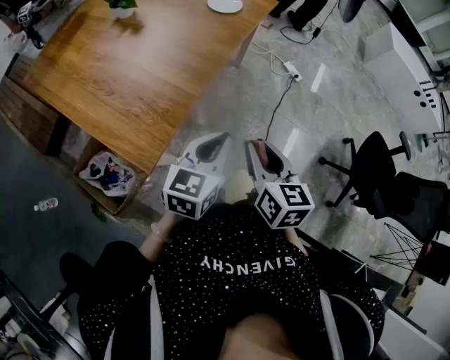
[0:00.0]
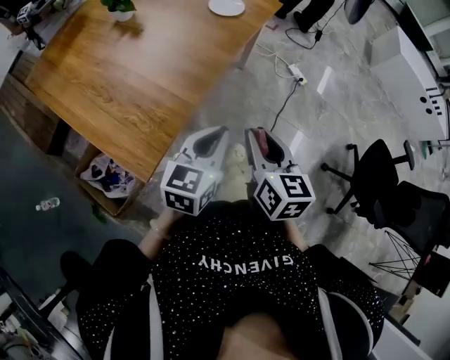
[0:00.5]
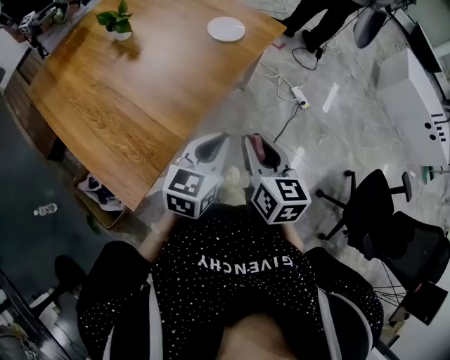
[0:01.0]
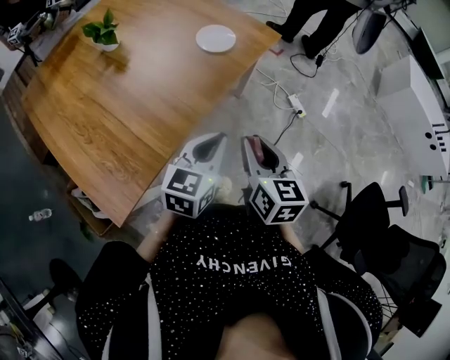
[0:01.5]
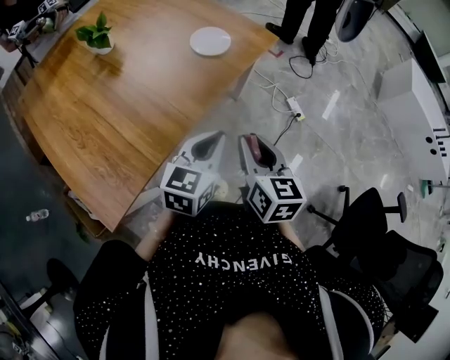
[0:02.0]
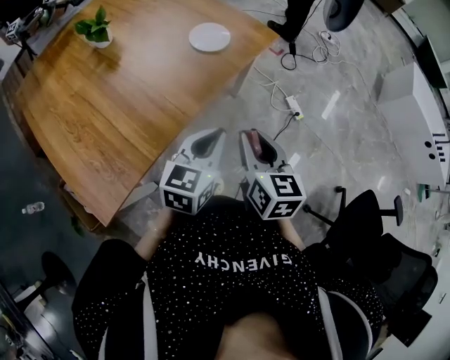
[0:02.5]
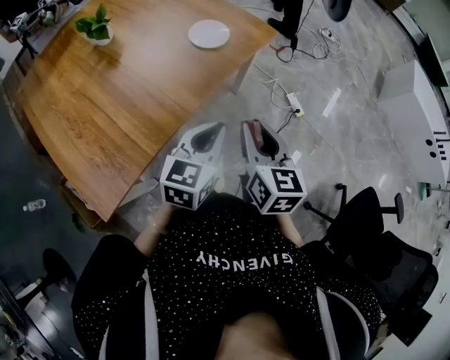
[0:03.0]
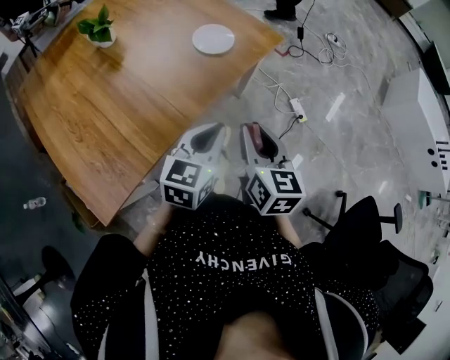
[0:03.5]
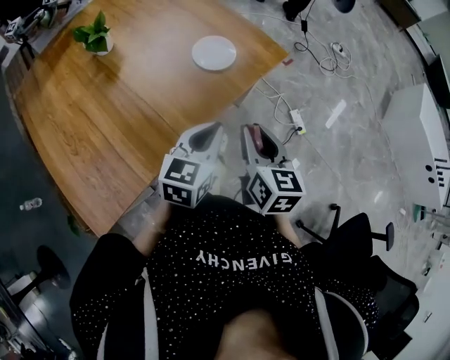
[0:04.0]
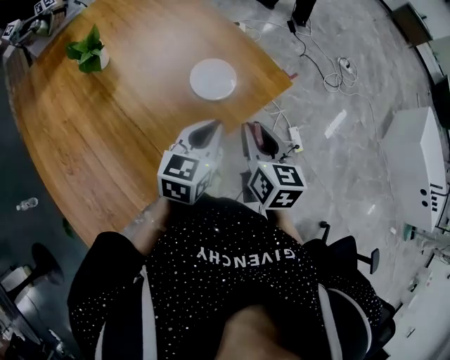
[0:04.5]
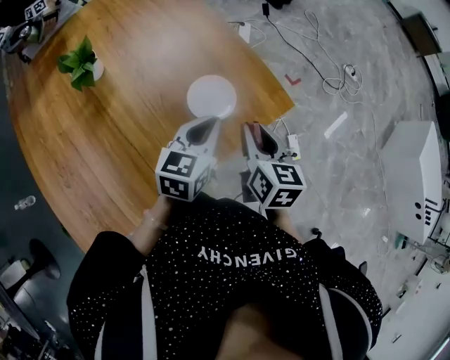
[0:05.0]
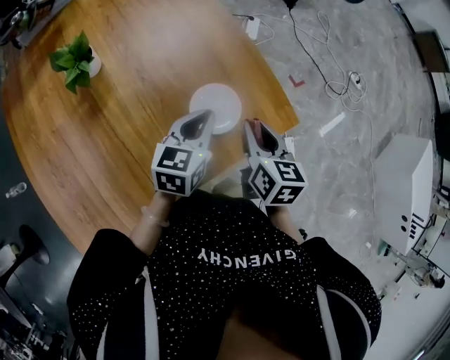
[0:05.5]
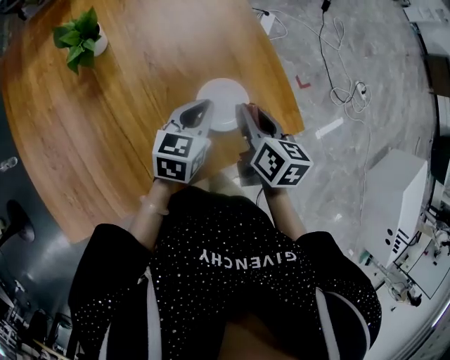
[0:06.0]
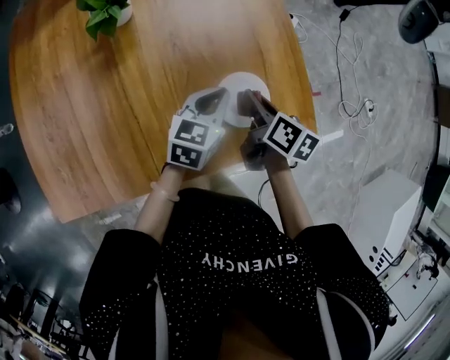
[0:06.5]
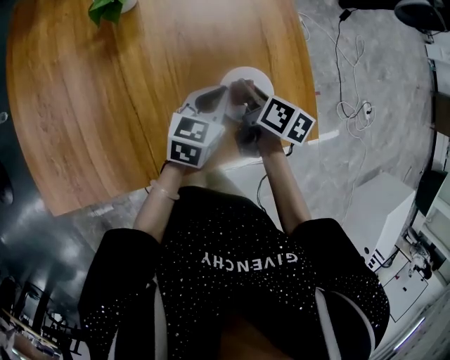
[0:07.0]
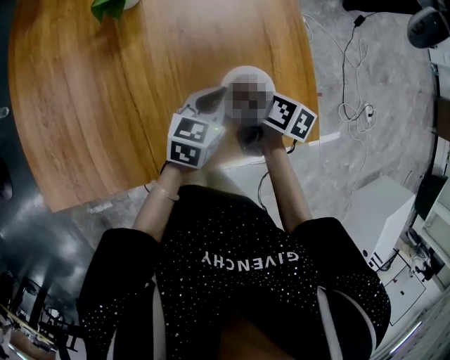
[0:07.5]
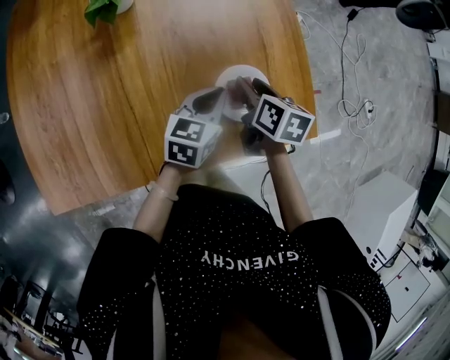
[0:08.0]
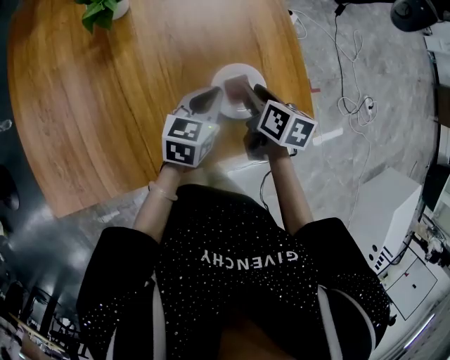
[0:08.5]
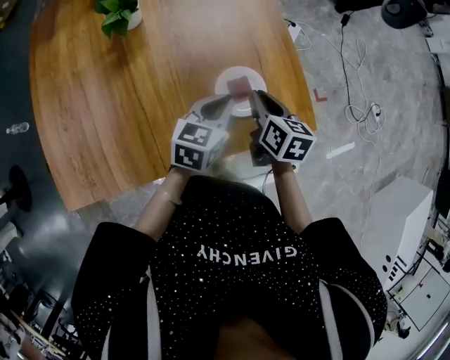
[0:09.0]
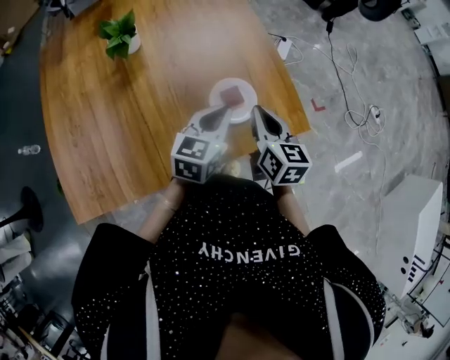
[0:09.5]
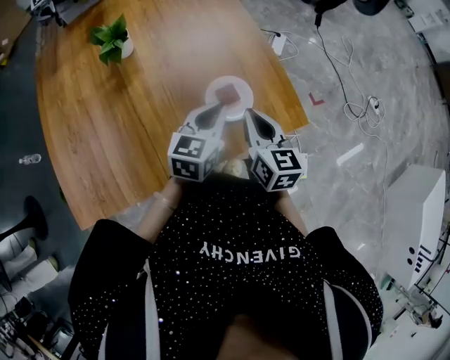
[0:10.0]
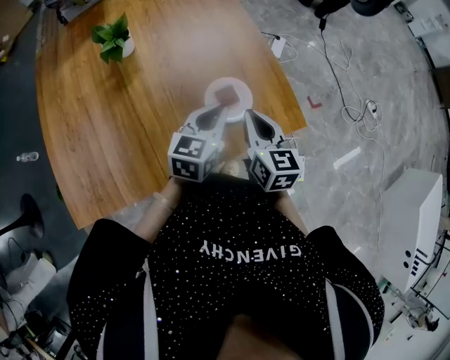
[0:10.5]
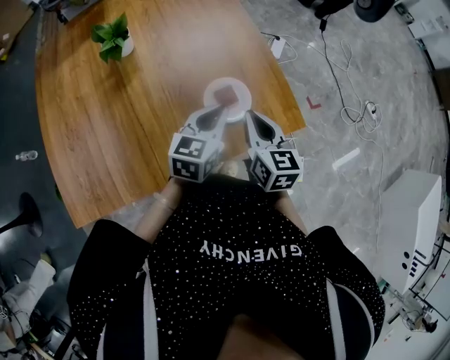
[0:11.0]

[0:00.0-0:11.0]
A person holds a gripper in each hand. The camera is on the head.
0:00.0 to 0:02.0: Both grippers move forward, roughly 30 cm.
0:02.0 to 0:03.5: The grippers move only a little.
0:03.5 to 0:05.5: Both grippers move forward, some 35 cm. The left gripper changes its angle by approximately 20 degrees.
0:05.5 to 0:07.5: The right gripper shifts some 15 cm downward, to the left and forward, and swivels approximately 30 degrees. Meanwhile the left gripper travels downward by approximately 10 cm.
0:07.5 to 0:09.0: The left gripper goes roughly 5 cm upward; the right gripper shifts some 10 cm upward and to the right, and rotates roughly 20 degrees.
0:09.0 to 0:11.0: The left gripper ends up approximately 5 cm from where it was, while the right gripper travels backward and upward by about 10 cm.

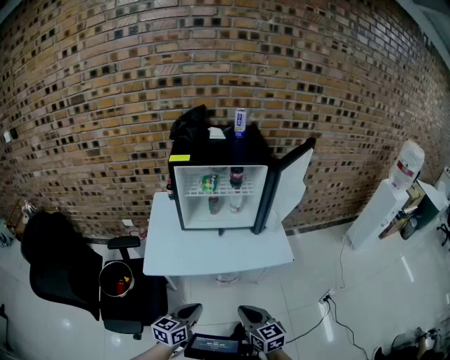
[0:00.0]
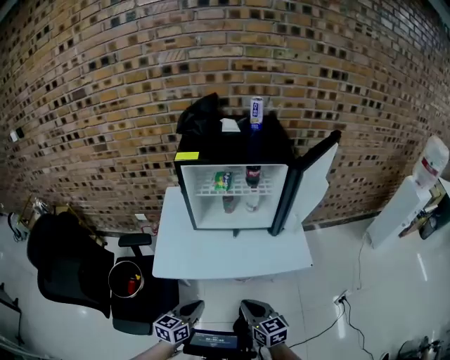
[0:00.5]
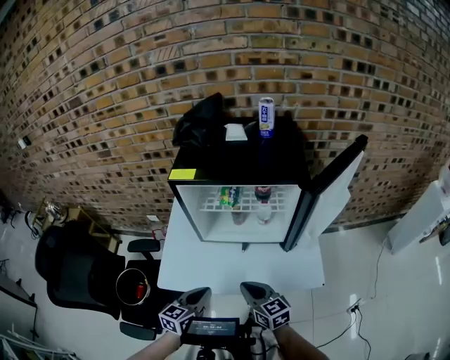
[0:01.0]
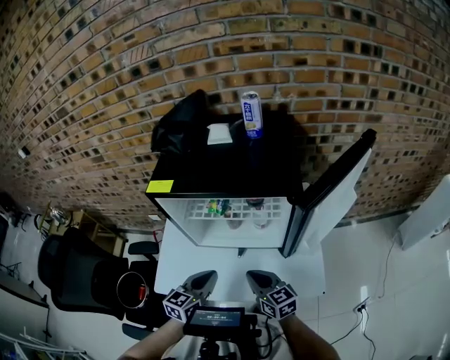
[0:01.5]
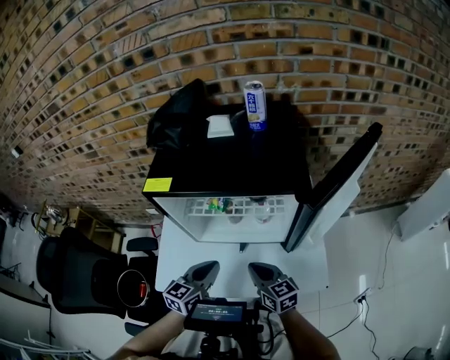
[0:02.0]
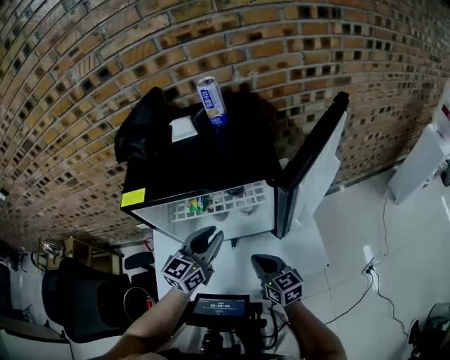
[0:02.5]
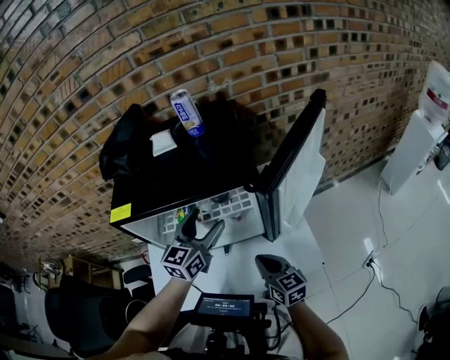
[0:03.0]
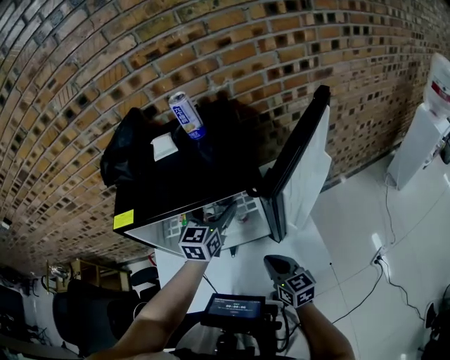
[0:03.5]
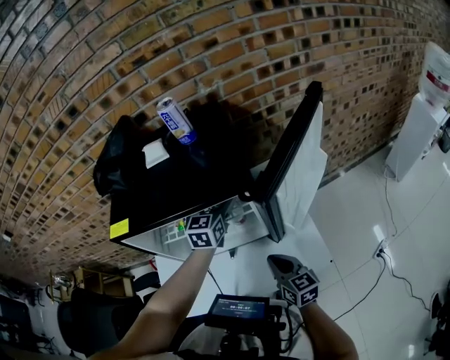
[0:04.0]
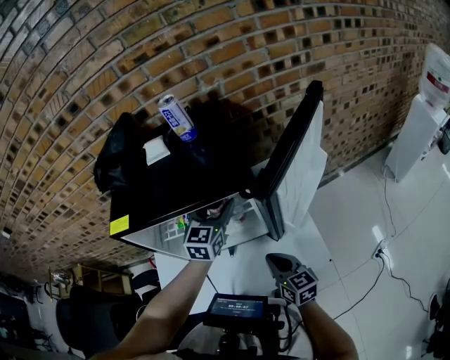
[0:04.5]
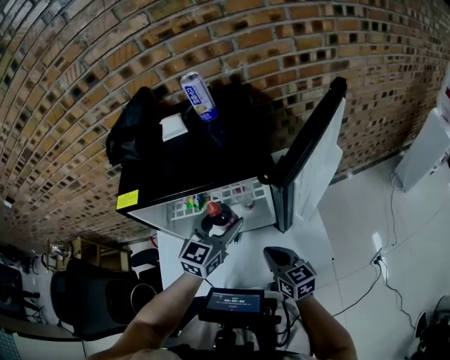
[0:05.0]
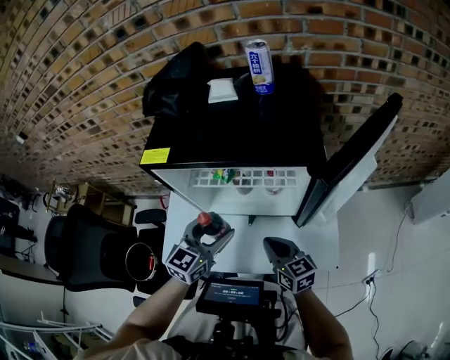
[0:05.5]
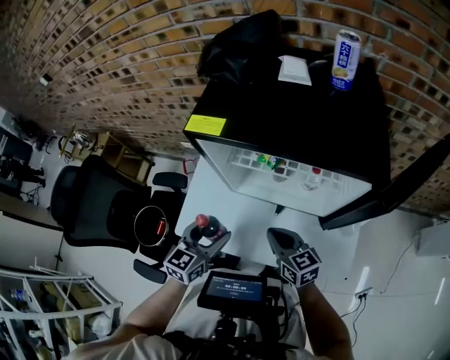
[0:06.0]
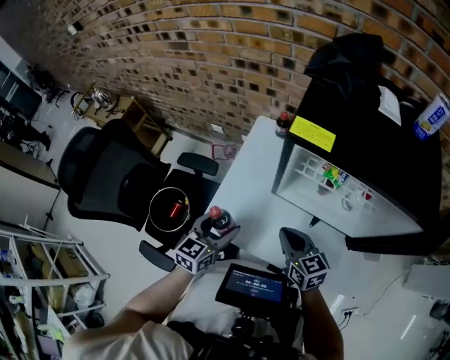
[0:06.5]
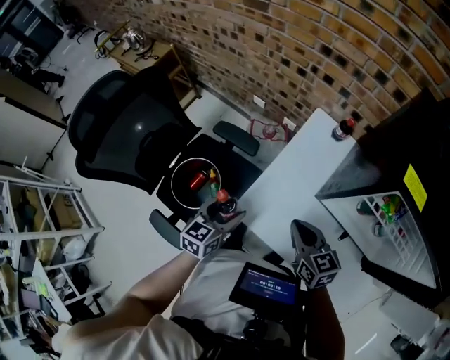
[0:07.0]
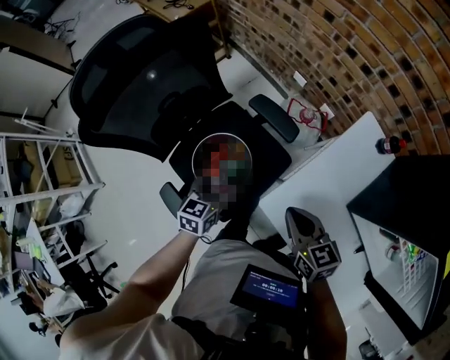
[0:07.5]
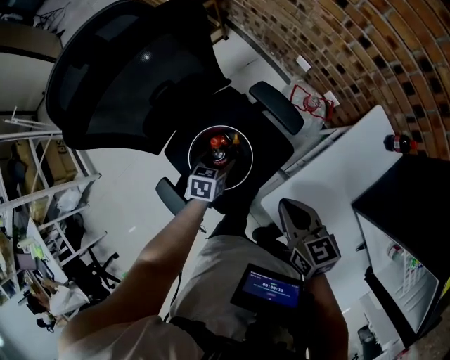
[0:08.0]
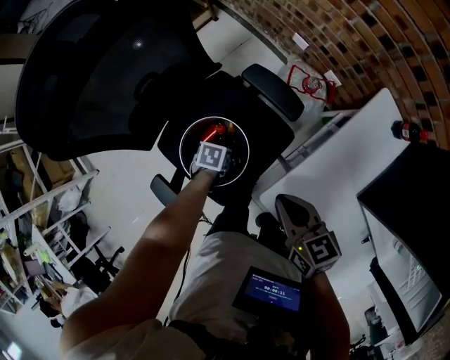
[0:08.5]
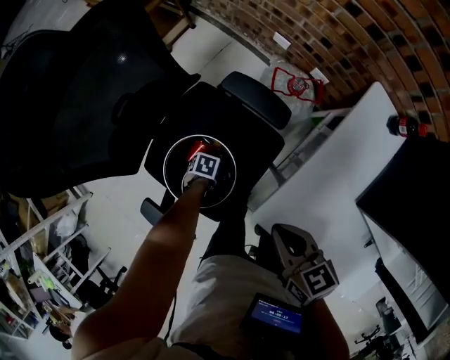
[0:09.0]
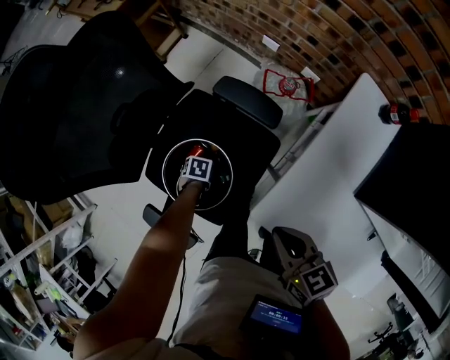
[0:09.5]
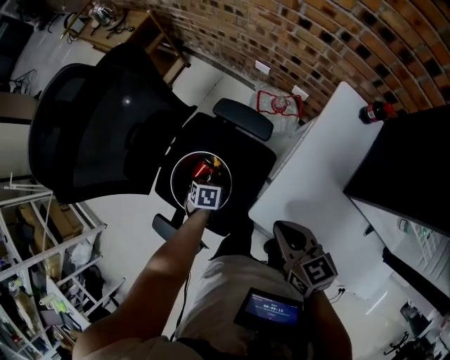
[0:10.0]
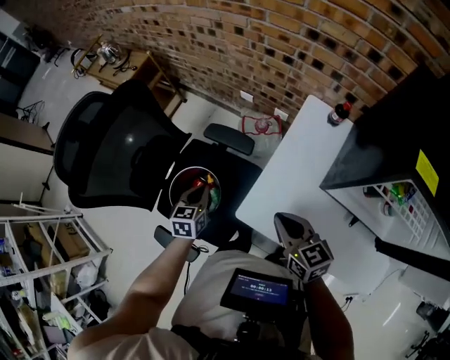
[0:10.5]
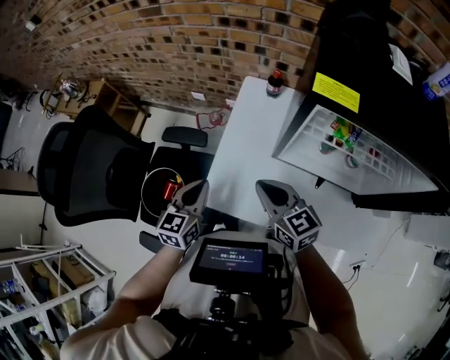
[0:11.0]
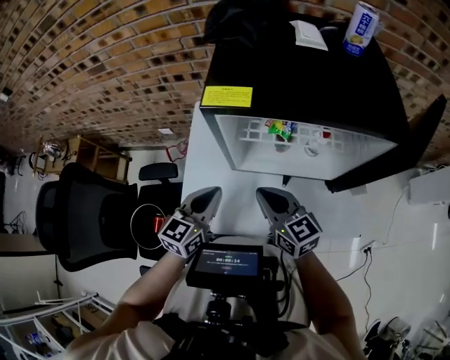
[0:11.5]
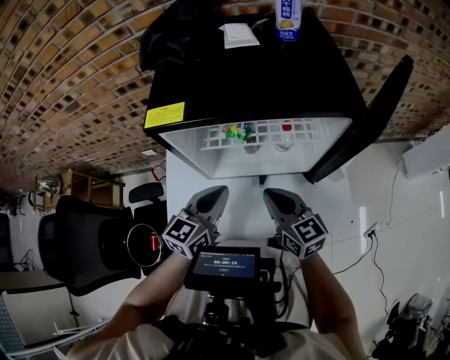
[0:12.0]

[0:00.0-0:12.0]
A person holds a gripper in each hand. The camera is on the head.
0:00.0 to 0:02.0: Both grippers move forward, some 35 cm.
0:02.0 to 0:04.0: The left gripper goes some 30 cm forward and to the right, and opens, while the right gripper heads to the right, covering roughly 10 cm, and turns by some 20 degrees.
0:04.0 to 0:06.0: The right gripper shifts by some 15 cm, and changes its angle by some 30 degrees; the left gripper changes place by some 35 cm.
0:06.0 to 0:08.0: Both grippers are carried about 50 cm. The left gripper rotates roughly 50 degrees. Meanwhile the right gripper turns by about 40 degrees.
0:08.0 to 0:10.0: The right gripper shifts by about 5 cm; the left gripper goes about 10 cm downward, turns by roughly 20 degrees, and closes.
0:10.0 to 0:12.0: The right gripper moves some 40 cm, and swivels about 40 degrees, while the left gripper changes place by roughly 70 cm, and points its fingers roughly 60 degrees further upward.

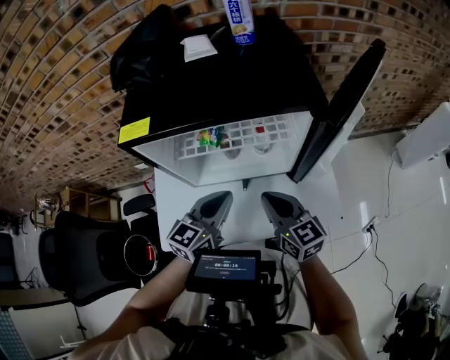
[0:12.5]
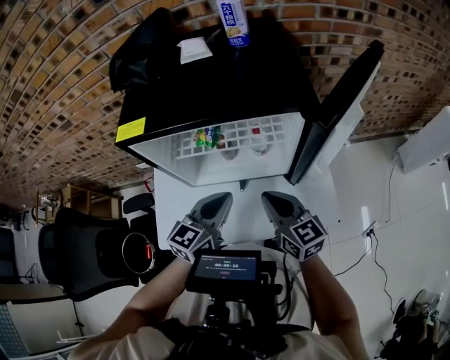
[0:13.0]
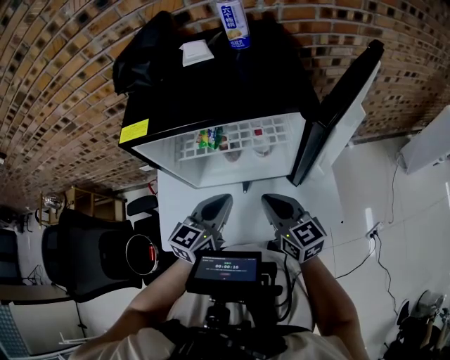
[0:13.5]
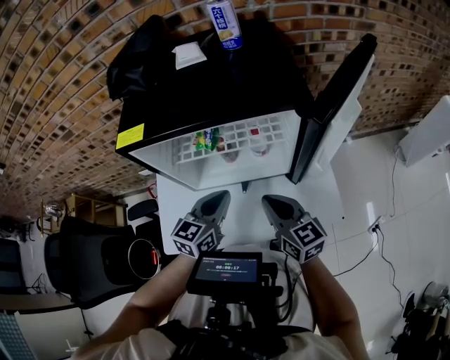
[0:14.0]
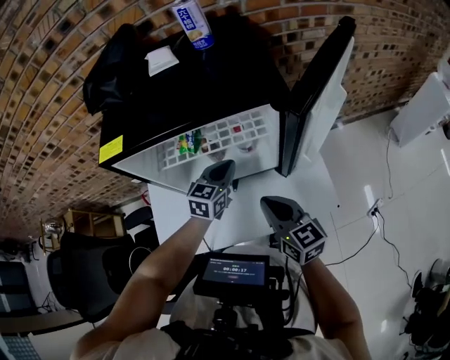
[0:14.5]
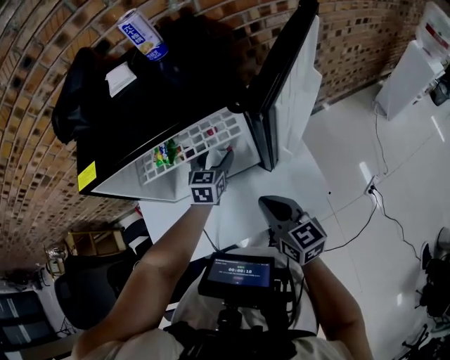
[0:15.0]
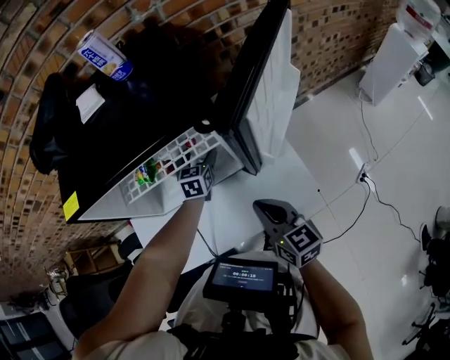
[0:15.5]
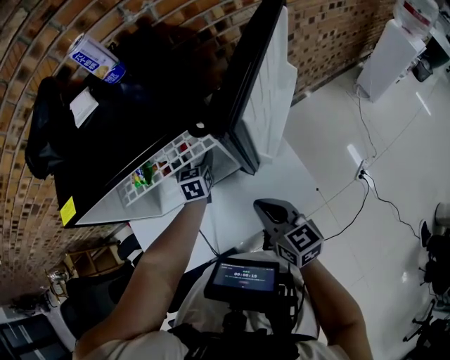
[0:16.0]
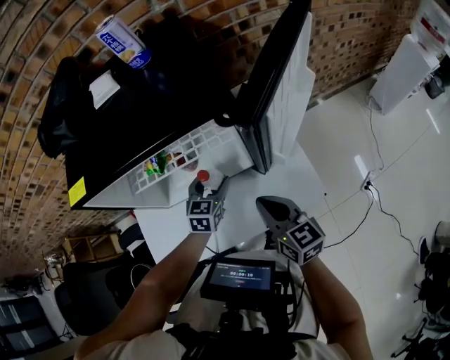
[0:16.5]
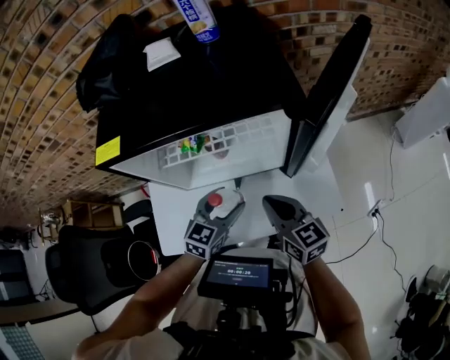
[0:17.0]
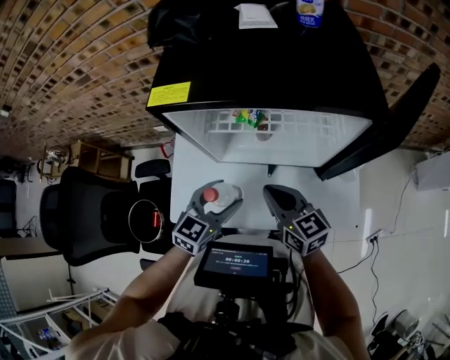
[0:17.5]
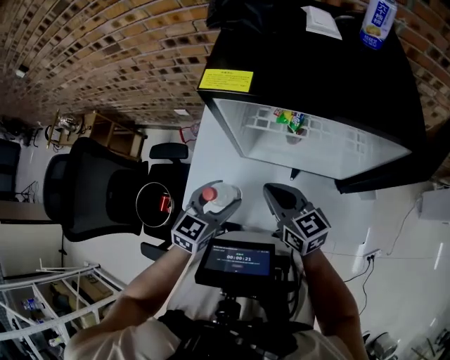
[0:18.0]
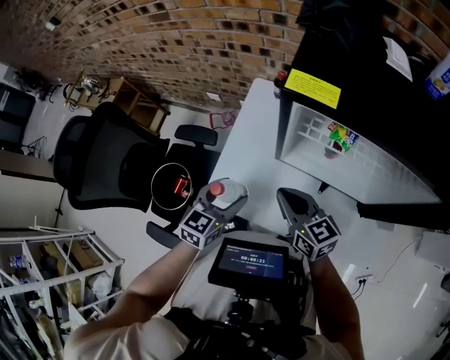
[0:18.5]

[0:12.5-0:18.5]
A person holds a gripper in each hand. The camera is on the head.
0:12.5 to 0:14.5: The left gripper shifts approximately 15 cm forward, downward and to the right.
0:14.5 to 0:16.5: The right gripper heads to the right, covering approximately 5 cm. Meanwhile the left gripper is displaced downward by roughly 5 cm, goes forward and returns, about 10 cm each way, and opens its fingers.
0:16.5 to 0:18.5: The left gripper ends up about 35 cm from where it was, and turns by about 30 degrees; the right gripper shifts by roughly 30 cm, and rotates roughly 40 degrees.
